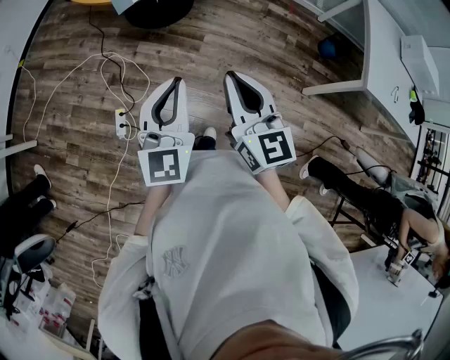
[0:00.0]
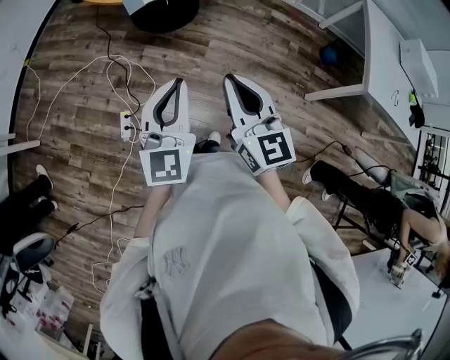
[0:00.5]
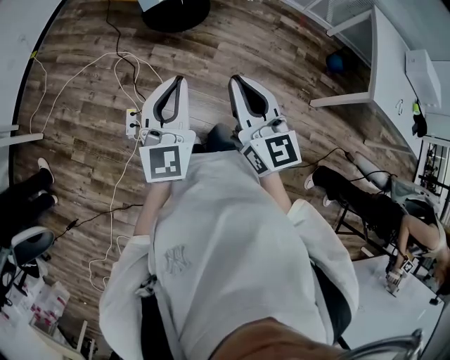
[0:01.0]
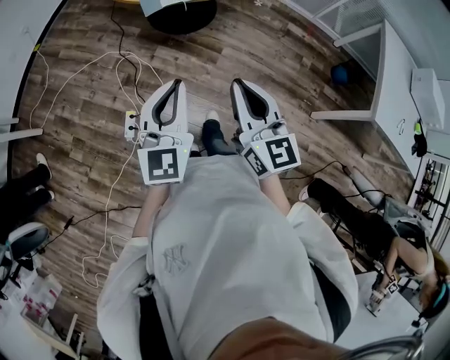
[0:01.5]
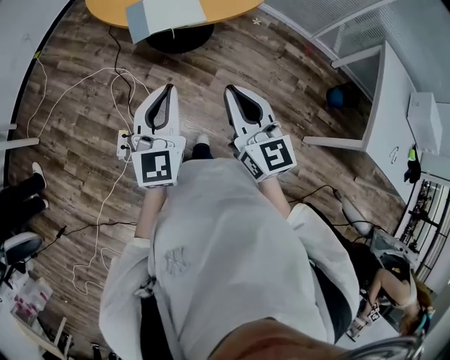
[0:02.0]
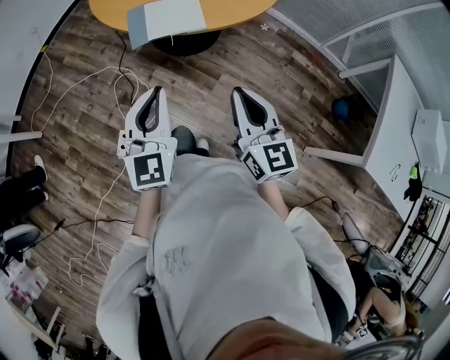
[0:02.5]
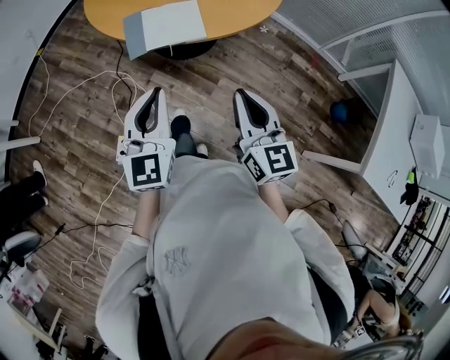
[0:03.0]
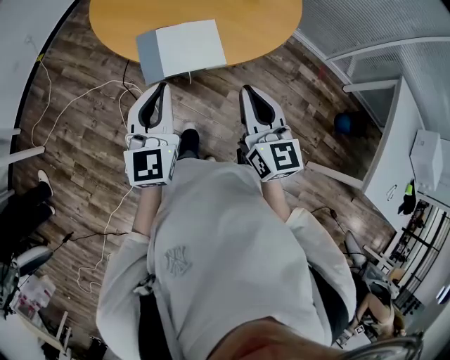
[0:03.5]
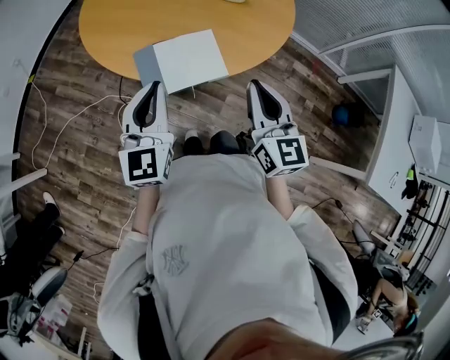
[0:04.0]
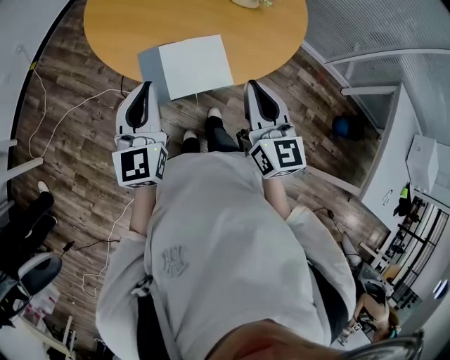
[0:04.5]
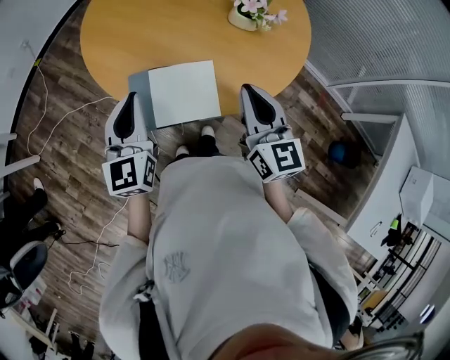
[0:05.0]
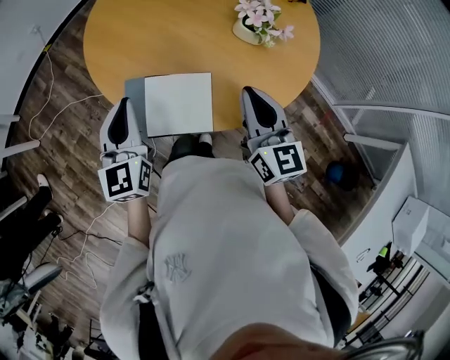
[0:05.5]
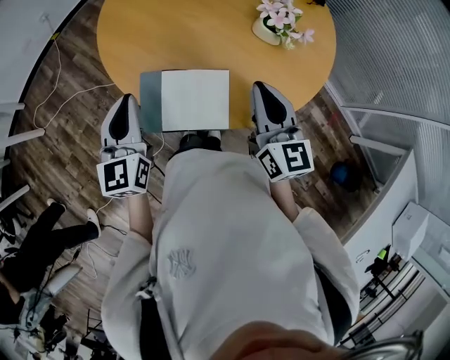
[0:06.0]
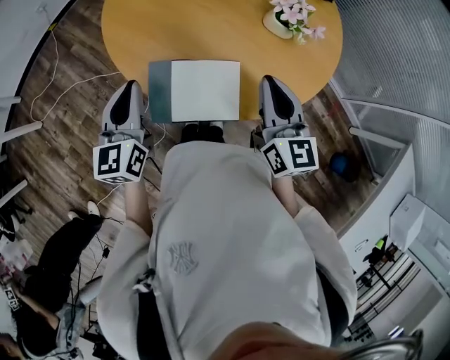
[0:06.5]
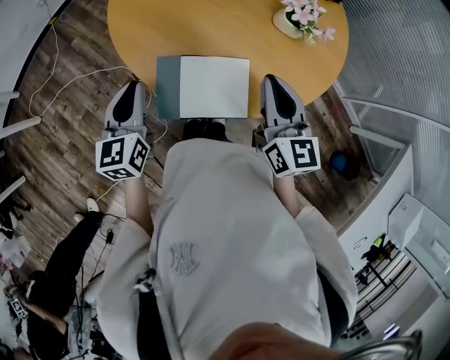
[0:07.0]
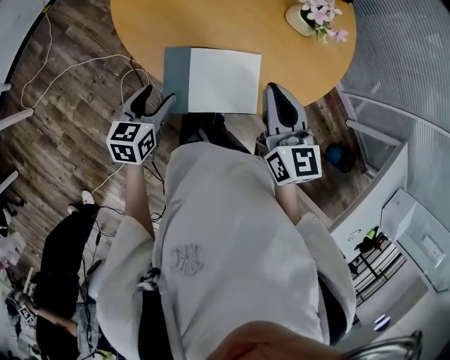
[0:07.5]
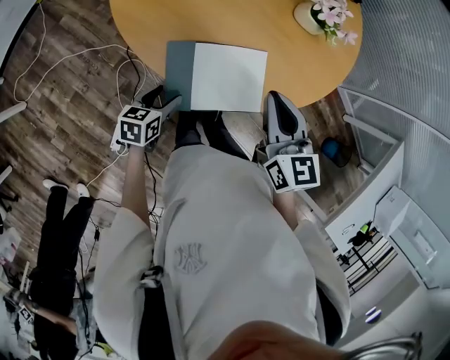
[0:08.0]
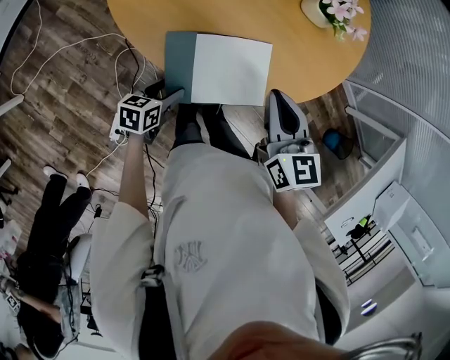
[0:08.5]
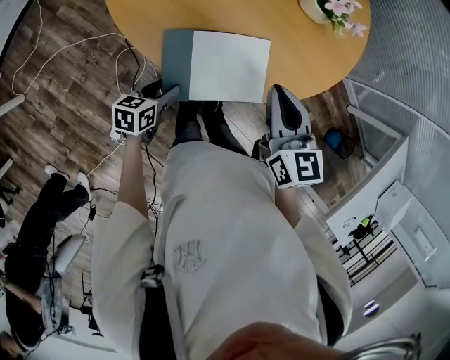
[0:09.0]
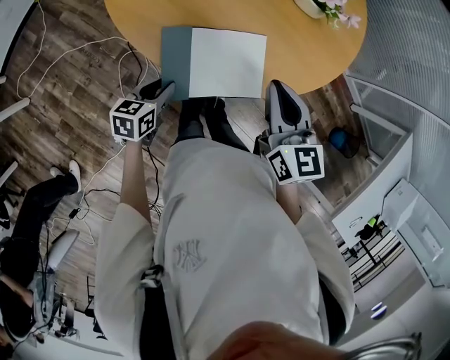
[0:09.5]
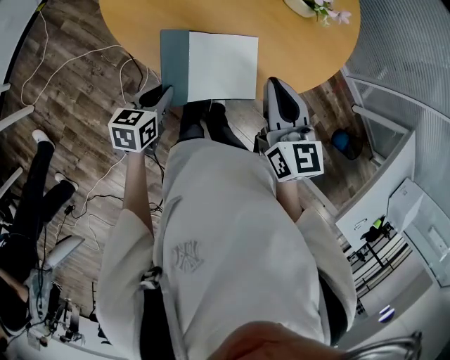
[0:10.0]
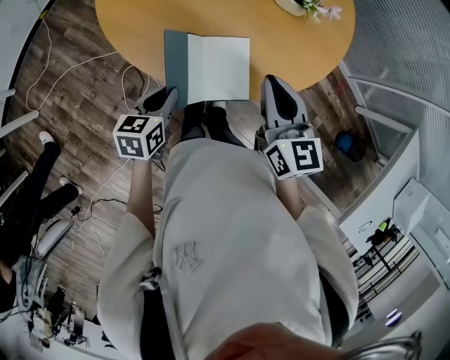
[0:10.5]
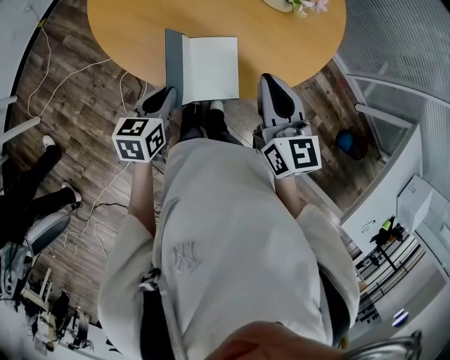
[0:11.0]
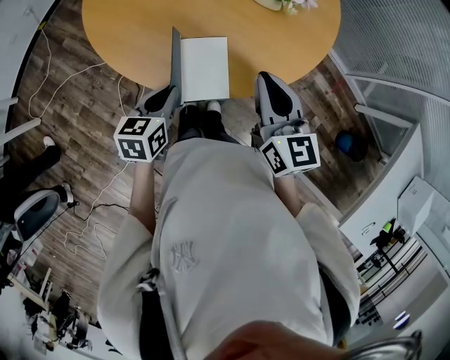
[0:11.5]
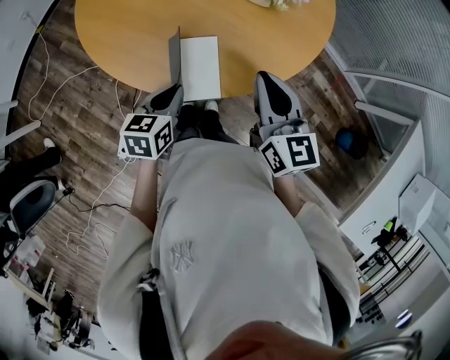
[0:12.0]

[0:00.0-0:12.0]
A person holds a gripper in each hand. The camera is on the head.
0:00.0 to 0:02.0: The grippers both shift forward by some 15 cm.
0:02.0 to 0:04.0: The grippers both shift forward by some 30 cm.
0:04.0 to 0:06.0: The left gripper moves forward, some 15 cm, and changes its angle by approximately 30 degrees. Meanwhile the right gripper moves forward, approximately 20 cm, and rotates some 20 degrees.
0:06.0 to 0:08.0: The right gripper shifts about 10 cm to the left and downward, while the left gripper is displaced downward by roughly 25 cm, tips its fingers downward by about 30 degrees, and opens.
0:08.0 to 0:10.0: The left gripper moves upward, some 5 cm, and closes up.
0:10.0 to 0:12.0: Both grippers travel together to the right, some 10 cm.

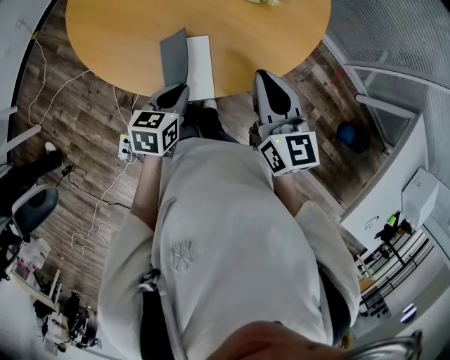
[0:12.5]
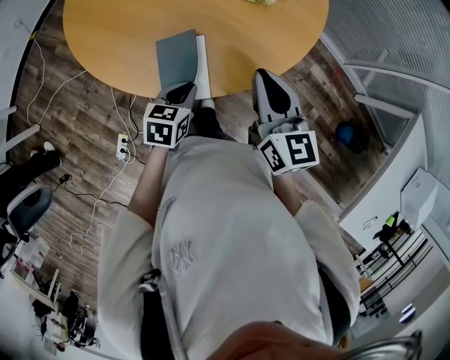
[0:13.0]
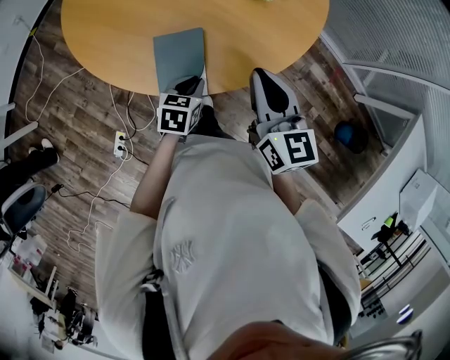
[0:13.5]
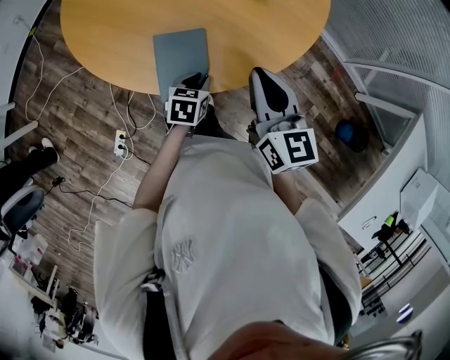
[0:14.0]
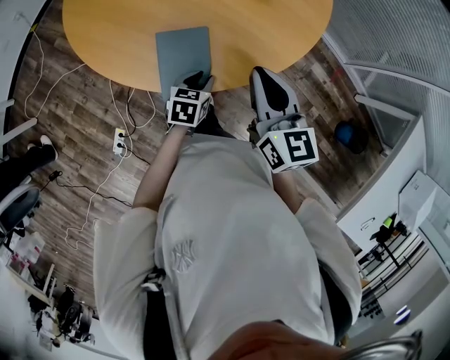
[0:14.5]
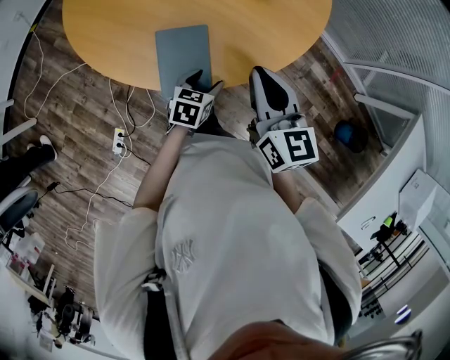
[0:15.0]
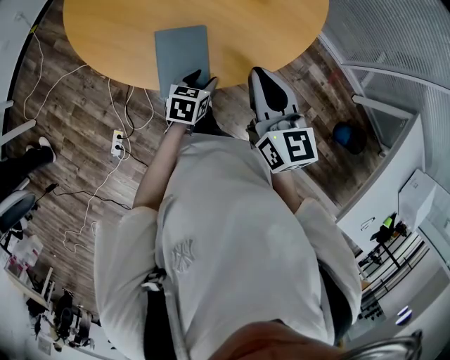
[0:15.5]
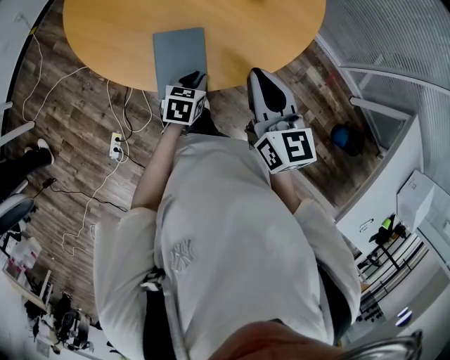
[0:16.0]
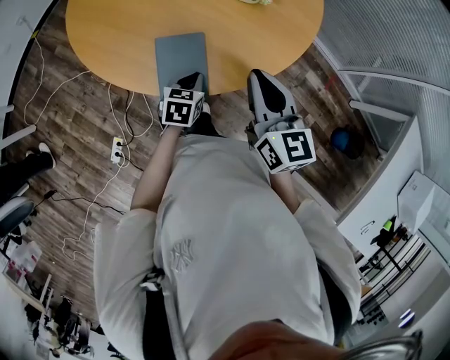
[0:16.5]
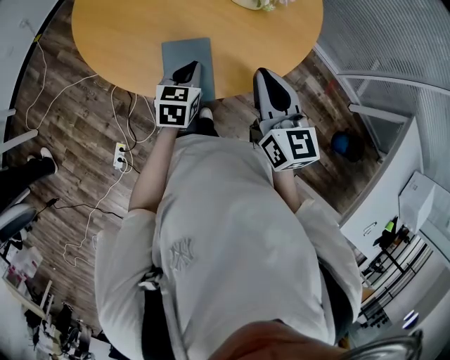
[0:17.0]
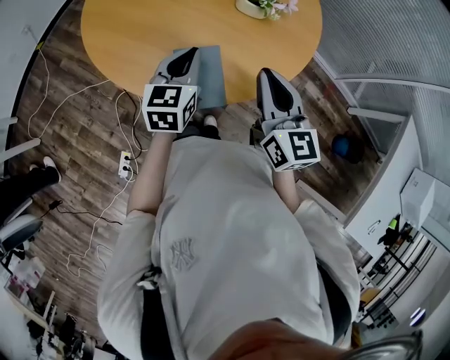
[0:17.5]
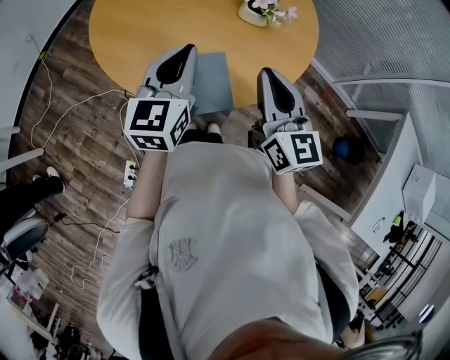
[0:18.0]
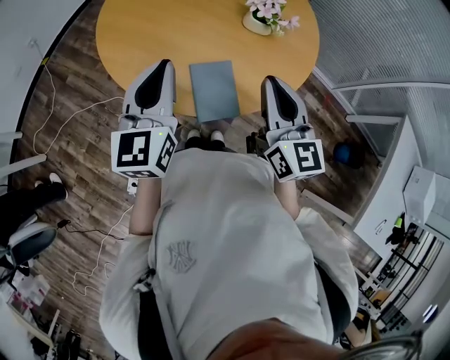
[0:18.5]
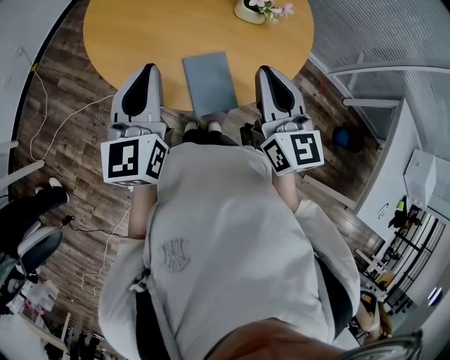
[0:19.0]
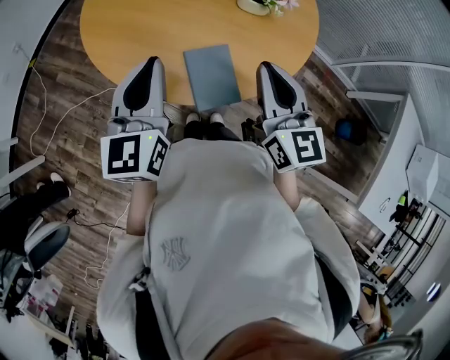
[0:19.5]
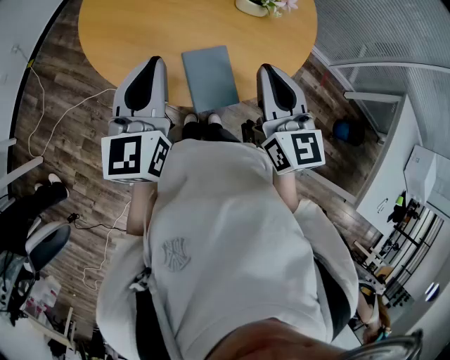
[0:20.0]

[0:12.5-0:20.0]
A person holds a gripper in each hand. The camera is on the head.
0:12.5 to 0:14.5: The left gripper travels downward and to the right by some 10 cm.
0:14.5 to 0:16.5: The left gripper closes.
0:16.5 to 0:18.0: The right gripper is displaced upward and to the left by some 10 cm; the left gripper shifts roughly 30 cm upward and to the left, and tilts its fingers approximately 40 degrees upward.
0:18.0 to 0:20.0: The left gripper travels to the left by some 10 cm.

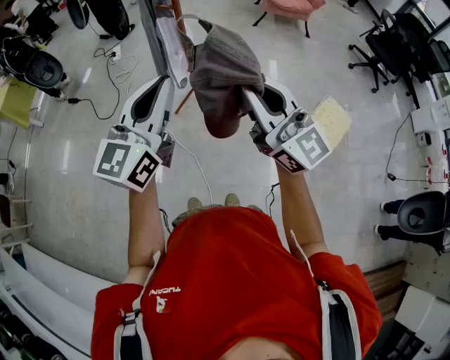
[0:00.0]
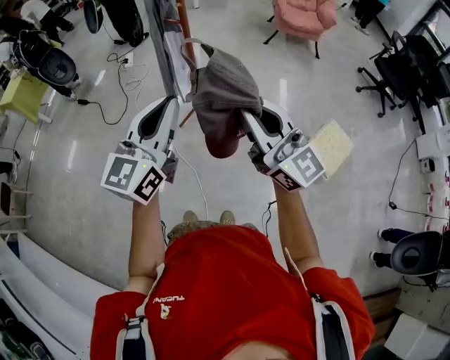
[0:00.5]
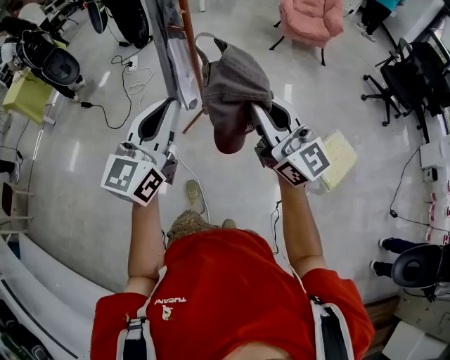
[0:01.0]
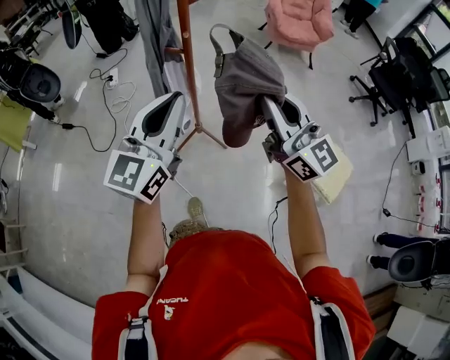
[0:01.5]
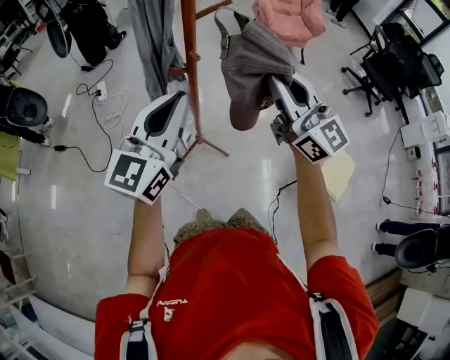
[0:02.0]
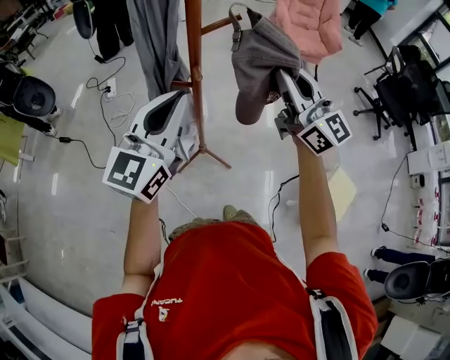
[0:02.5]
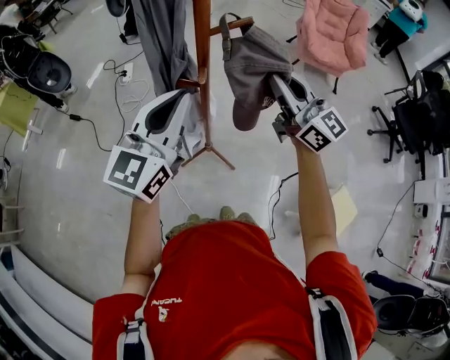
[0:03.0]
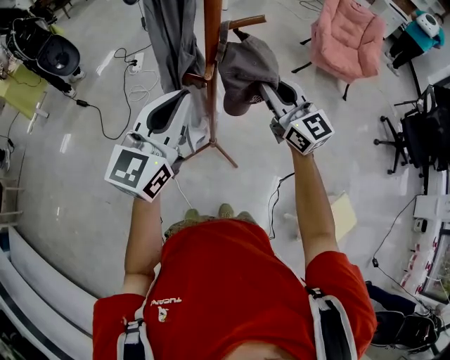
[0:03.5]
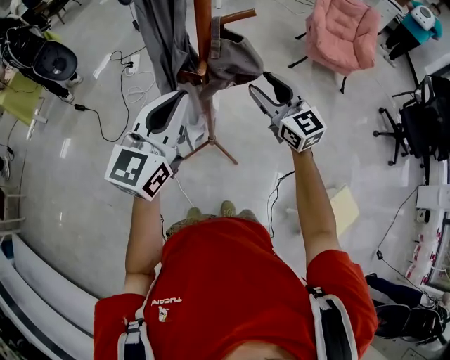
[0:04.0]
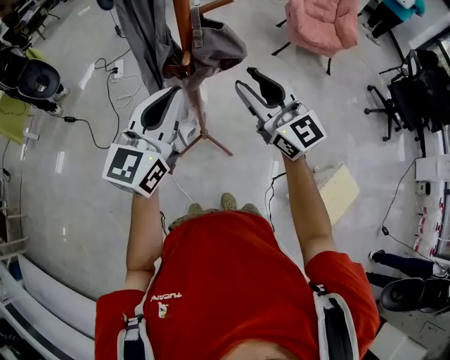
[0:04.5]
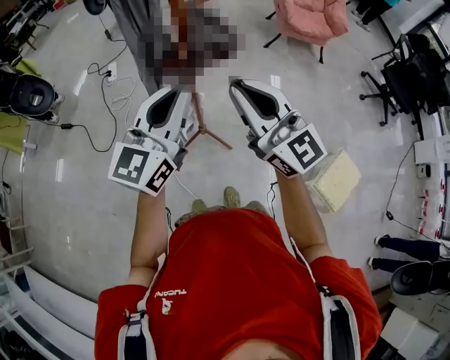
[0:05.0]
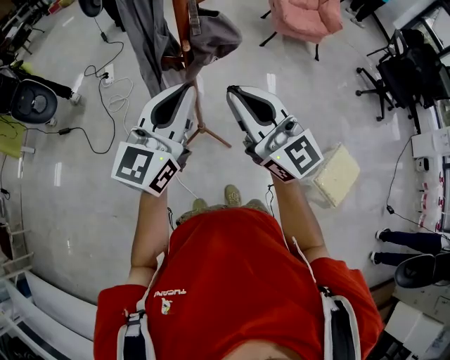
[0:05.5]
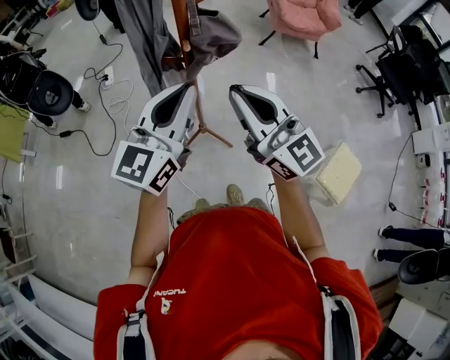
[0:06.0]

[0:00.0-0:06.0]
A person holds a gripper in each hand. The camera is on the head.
0:00.0 to 0:02.0: The two grippers go about 35 cm forward.
0:02.0 to 0:04.0: The left gripper moves forward, about 5 cm, while the right gripper travels forward and downward by about 20 cm, swivels roughly 20 degrees, and opens up.
0:04.0 to 0:06.0: The left gripper heads backward, covering approximately 5 cm; the right gripper travels backward and upward by some 20 cm, and closes its fingers.

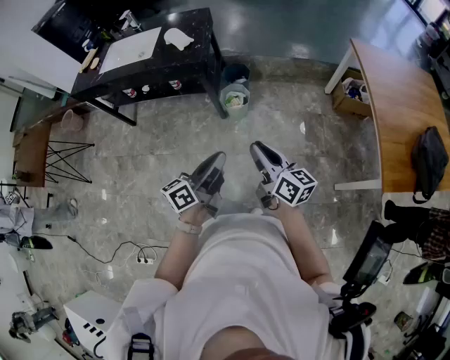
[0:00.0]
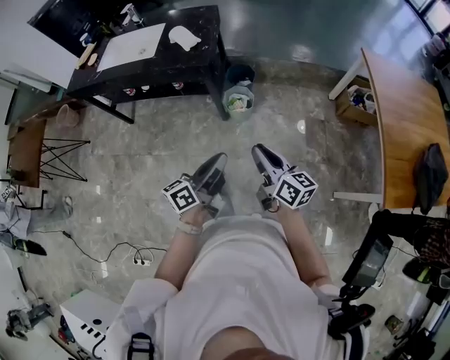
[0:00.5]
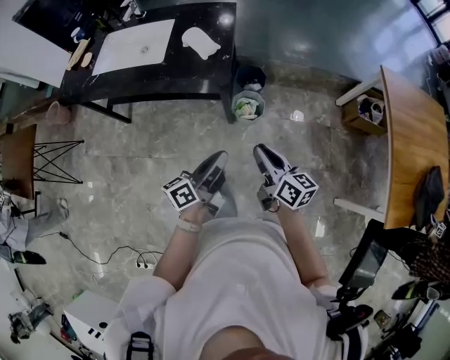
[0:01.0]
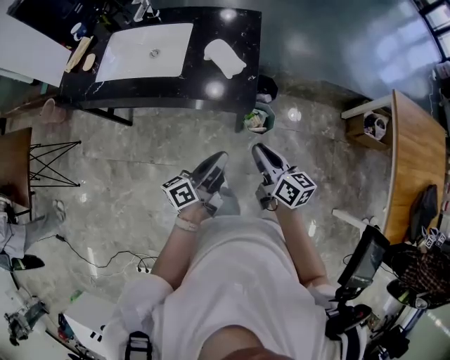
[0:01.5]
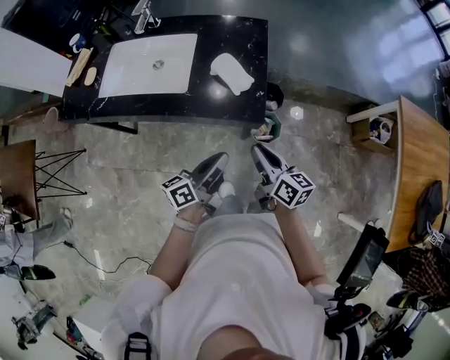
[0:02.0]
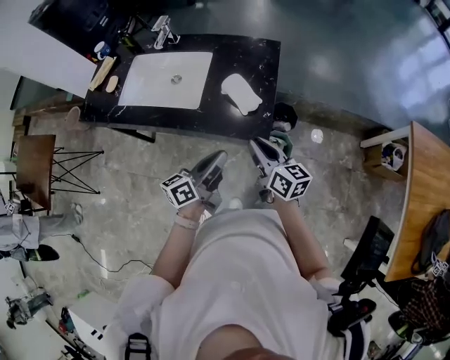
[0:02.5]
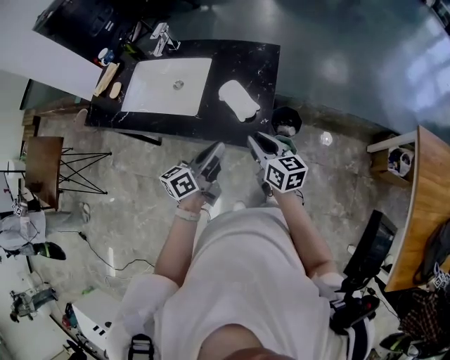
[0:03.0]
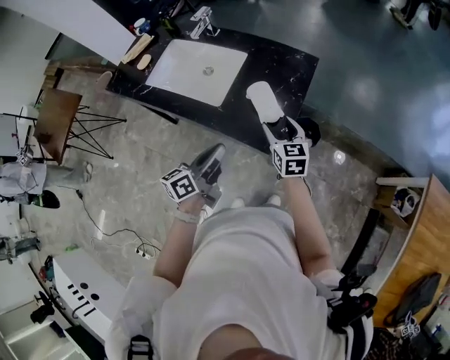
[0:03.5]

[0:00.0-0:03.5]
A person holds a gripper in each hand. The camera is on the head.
0:00.0 to 0:02.0: The two grippers travel together, forward and to the left, about 50 cm.
0:02.0 to 0:03.5: The right gripper shifts approximately 20 cm forward, changes its angle by roughly 40 degrees, and opens its fingers. Meanwhile the left gripper moves forward, approximately 10 cm, and turns by roughly 30 degrees.
